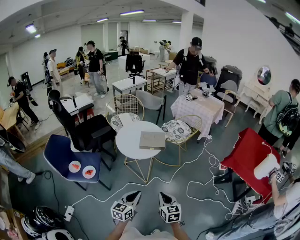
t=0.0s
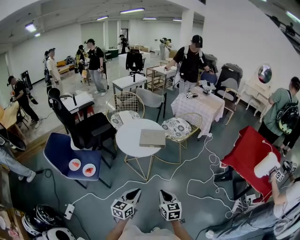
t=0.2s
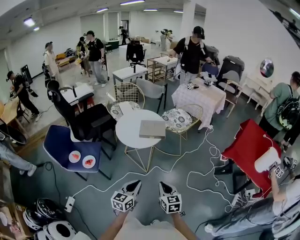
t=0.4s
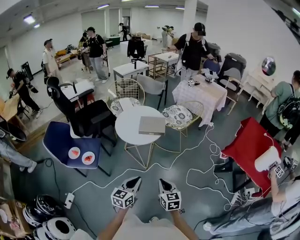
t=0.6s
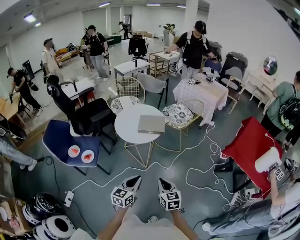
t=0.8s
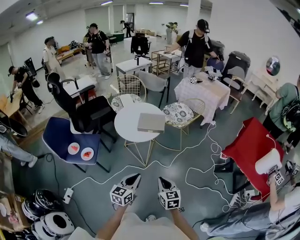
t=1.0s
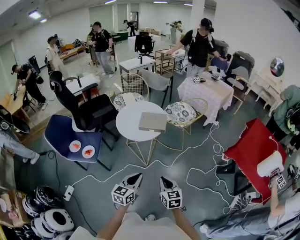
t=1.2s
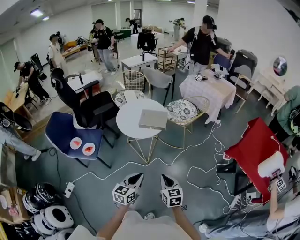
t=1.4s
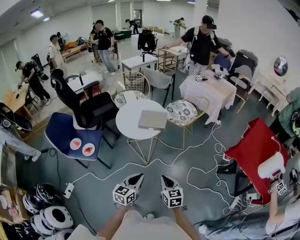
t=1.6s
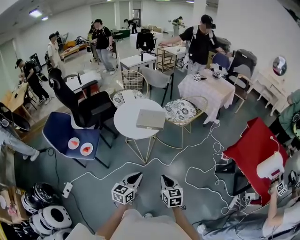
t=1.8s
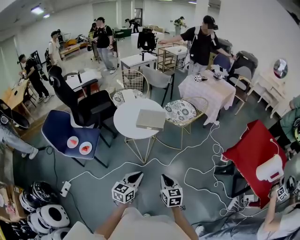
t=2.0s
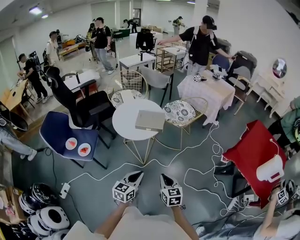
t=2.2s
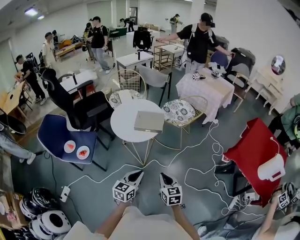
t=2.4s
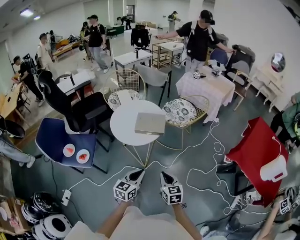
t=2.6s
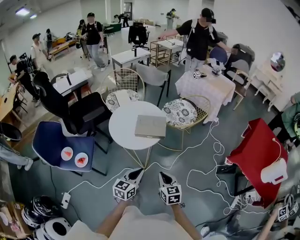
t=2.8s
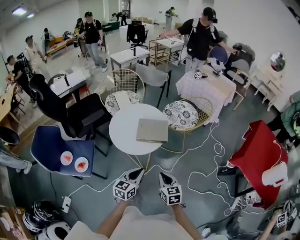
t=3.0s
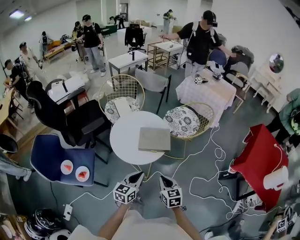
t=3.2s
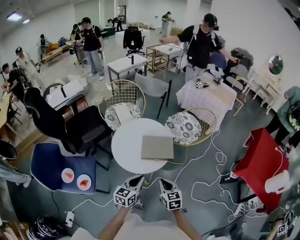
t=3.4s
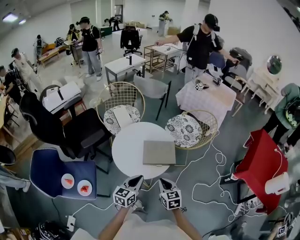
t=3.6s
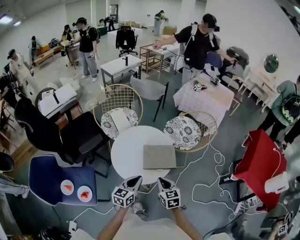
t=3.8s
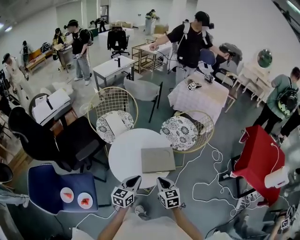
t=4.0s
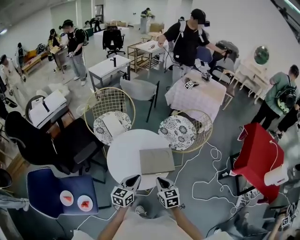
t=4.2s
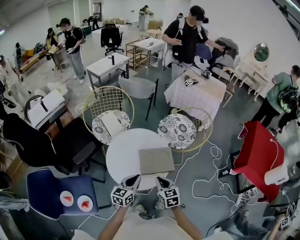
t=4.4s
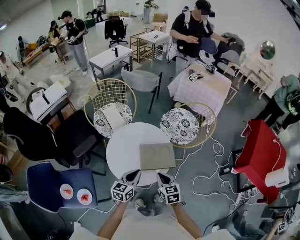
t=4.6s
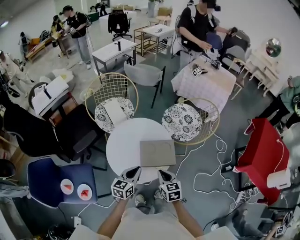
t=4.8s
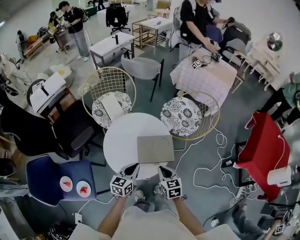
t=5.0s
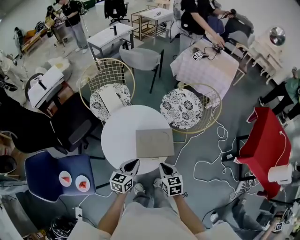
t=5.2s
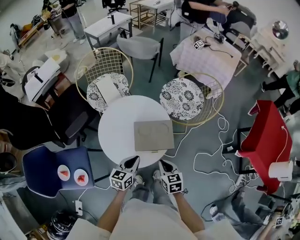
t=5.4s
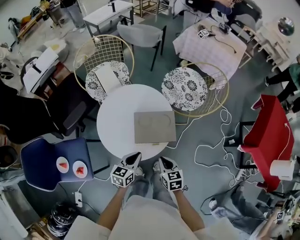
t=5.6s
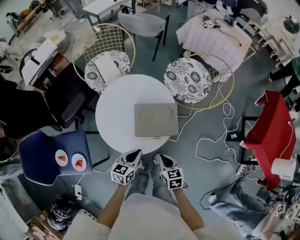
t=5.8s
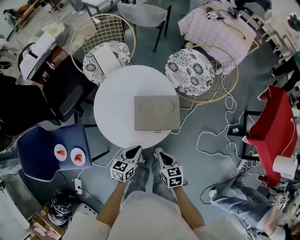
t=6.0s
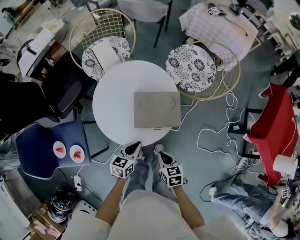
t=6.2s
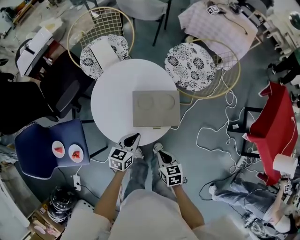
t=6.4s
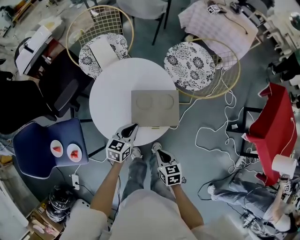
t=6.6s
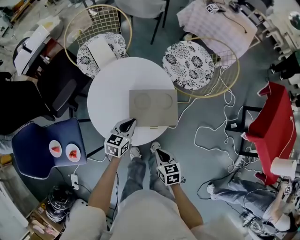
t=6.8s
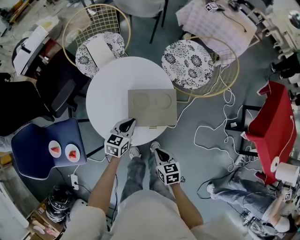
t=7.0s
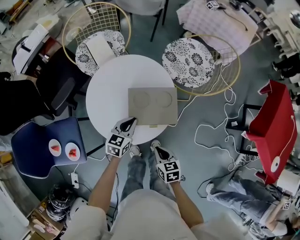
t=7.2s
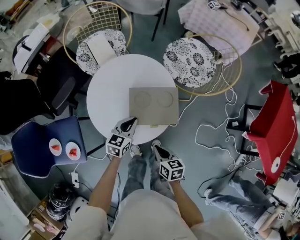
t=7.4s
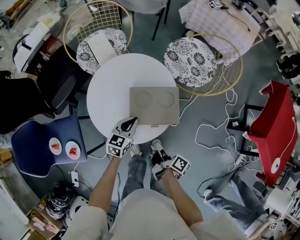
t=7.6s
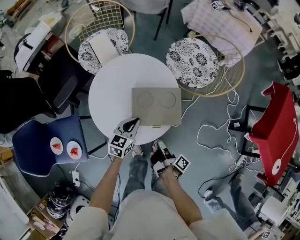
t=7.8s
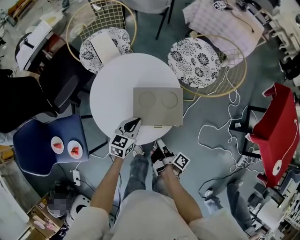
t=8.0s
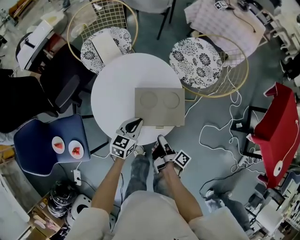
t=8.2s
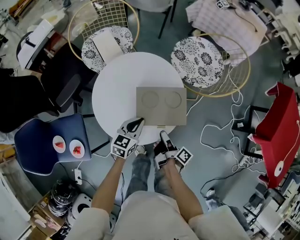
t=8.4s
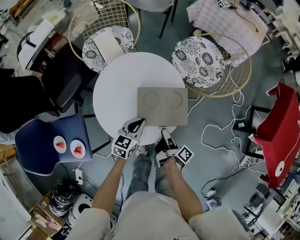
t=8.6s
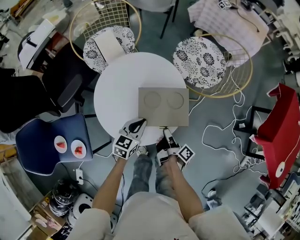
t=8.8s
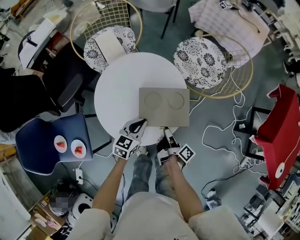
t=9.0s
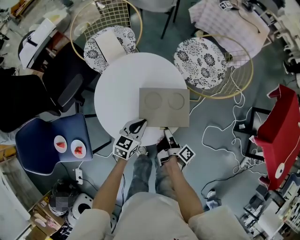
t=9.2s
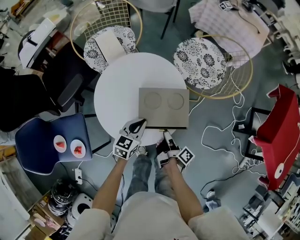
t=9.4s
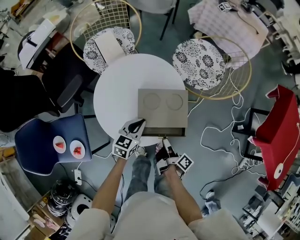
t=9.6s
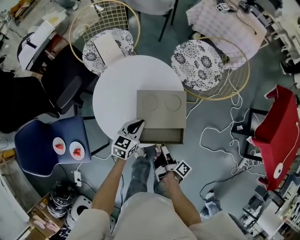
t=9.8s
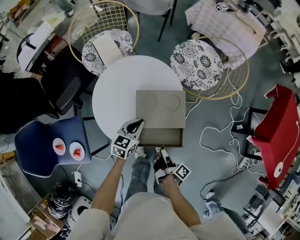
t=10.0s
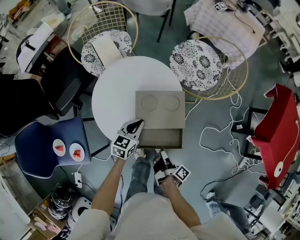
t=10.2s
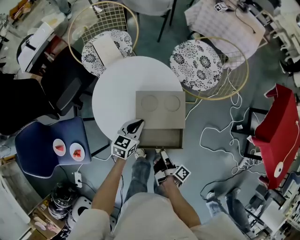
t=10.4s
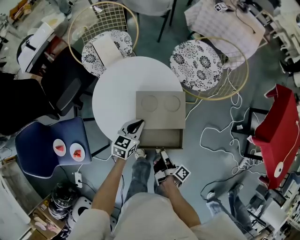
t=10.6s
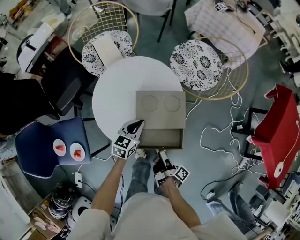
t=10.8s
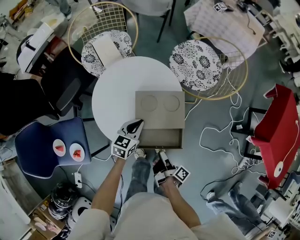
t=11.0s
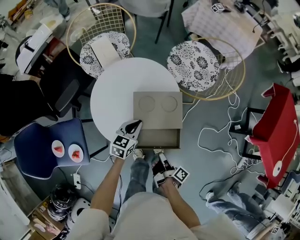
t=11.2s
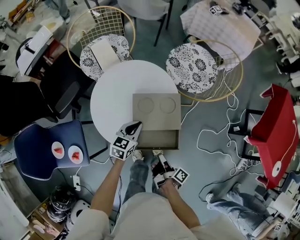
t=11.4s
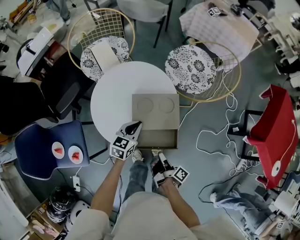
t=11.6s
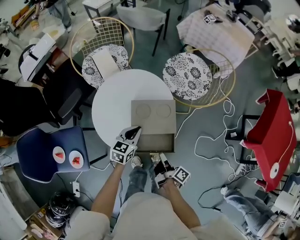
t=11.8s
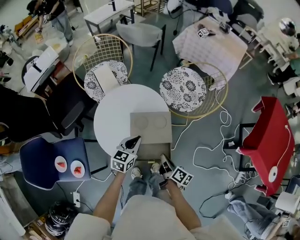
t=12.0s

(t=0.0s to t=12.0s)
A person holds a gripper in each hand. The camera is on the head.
t=0.0s - t=1.6s: Both grippers travel together to the right, some 10 cm.
t=1.6s - t=3.0s: The right gripper is displaced forward and to the left by roughly 20 cm, while the left gripper travels forward by roughly 20 cm.
t=3.0s - t=4.4s: The two grippers go some 25 cm forward and to the left.
t=4.4s - t=6.0s: The left gripper goes some 15 cm downward, while the right gripper goes some 15 cm downward and backward, and turns by some 20 degrees.
t=6.0s - t=7.6s: The left gripper is displaced forward by about 10 cm. Meanwhile the right gripper rolls clockwise, seen from behind, by roughly 70 degrees.
t=7.6s - t=9.0s: The right gripper shifts approximately 5 cm forward.
t=9.0s - t=10.4s: The right gripper heads backward, covering some 10 cm.
t=10.4s - t=12.0s: The right gripper is displaced upward and forward by approximately 10 cm, and swivels about 30 degrees. The left gripper moves upward, about 10 cm.

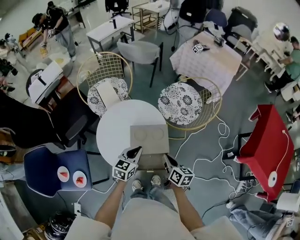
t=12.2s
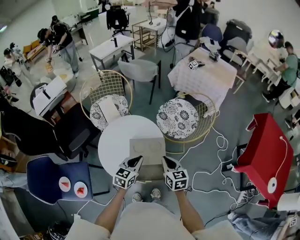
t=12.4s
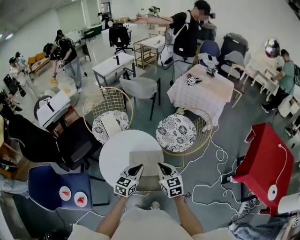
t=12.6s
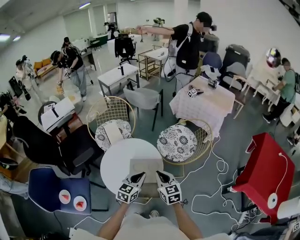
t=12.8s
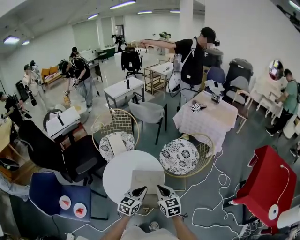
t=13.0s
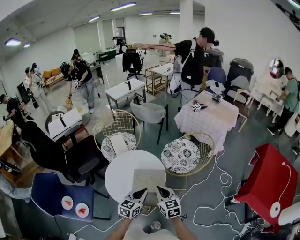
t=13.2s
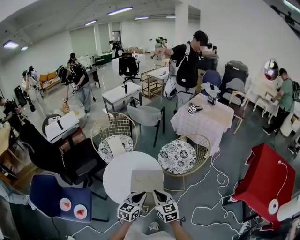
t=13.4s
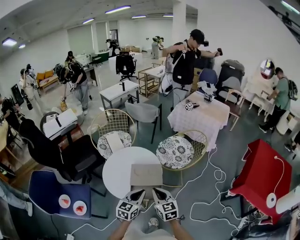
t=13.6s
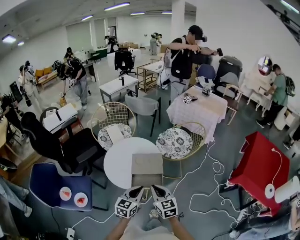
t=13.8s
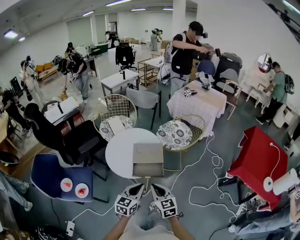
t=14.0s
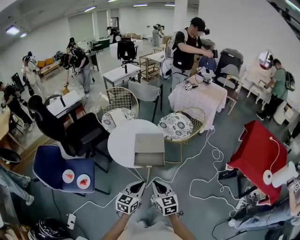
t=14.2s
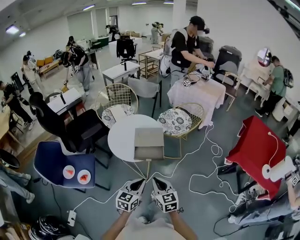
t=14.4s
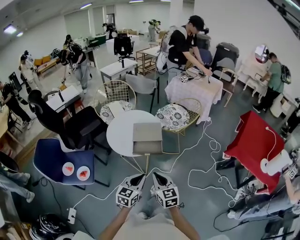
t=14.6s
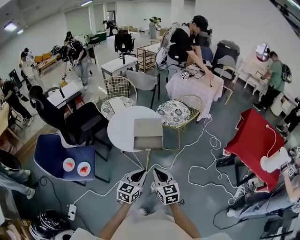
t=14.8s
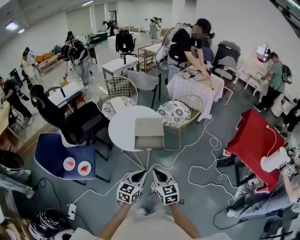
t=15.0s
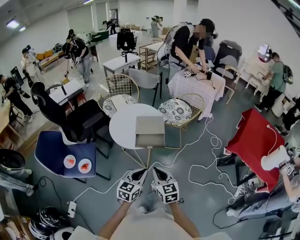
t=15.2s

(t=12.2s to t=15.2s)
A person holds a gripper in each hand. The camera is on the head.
t=12.2s - t=13.8s: Both grippers travel together backward and upward, some 20 cm. The right gripper rolls counterclockwise, seen from behind, by some 40 degrees.
t=13.8s - t=15.2s: The two grippers go some 20 cm backward.

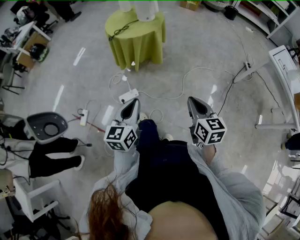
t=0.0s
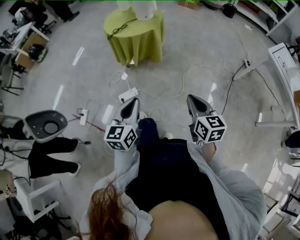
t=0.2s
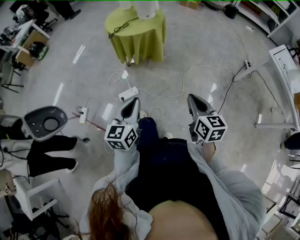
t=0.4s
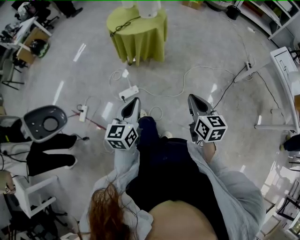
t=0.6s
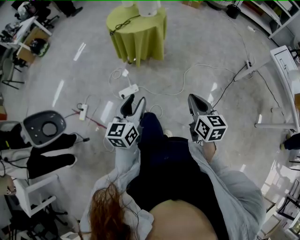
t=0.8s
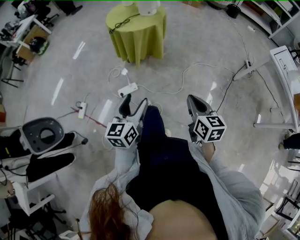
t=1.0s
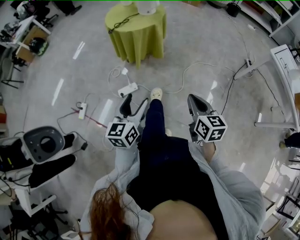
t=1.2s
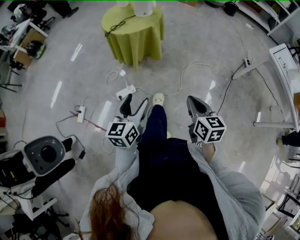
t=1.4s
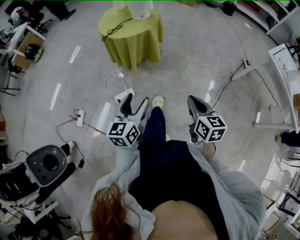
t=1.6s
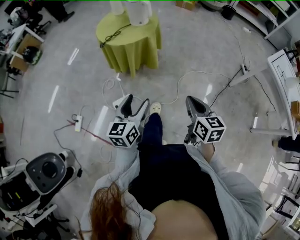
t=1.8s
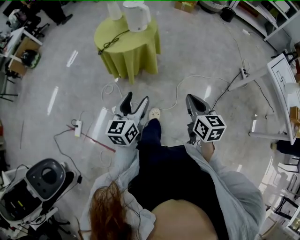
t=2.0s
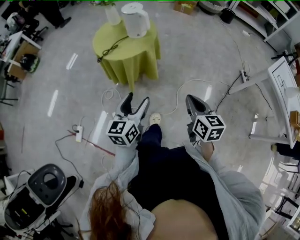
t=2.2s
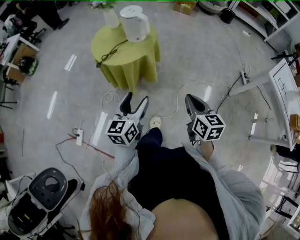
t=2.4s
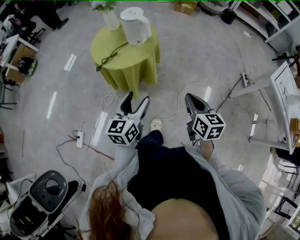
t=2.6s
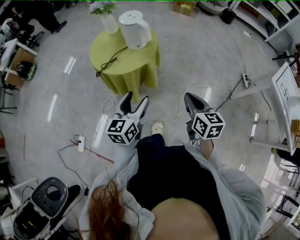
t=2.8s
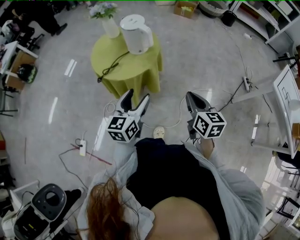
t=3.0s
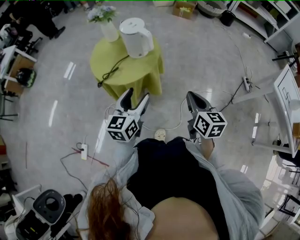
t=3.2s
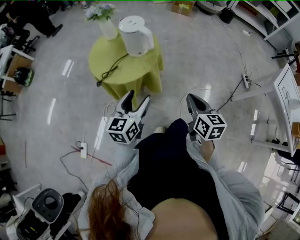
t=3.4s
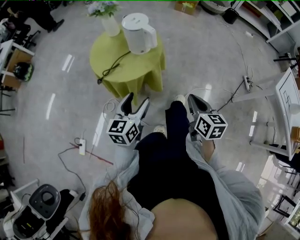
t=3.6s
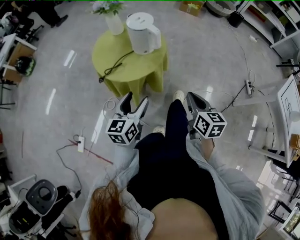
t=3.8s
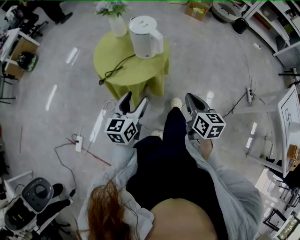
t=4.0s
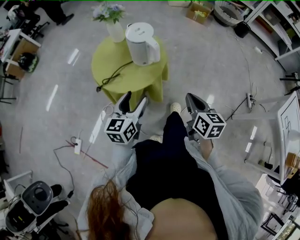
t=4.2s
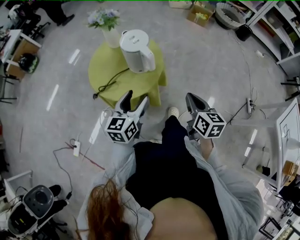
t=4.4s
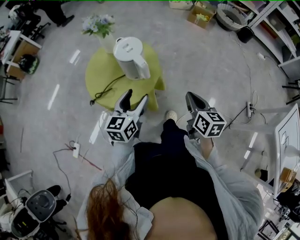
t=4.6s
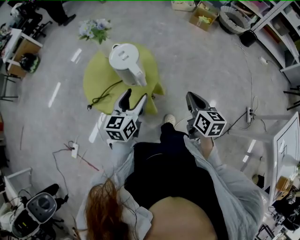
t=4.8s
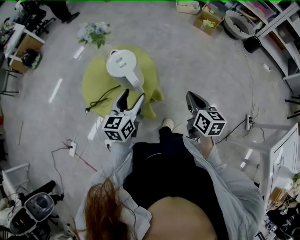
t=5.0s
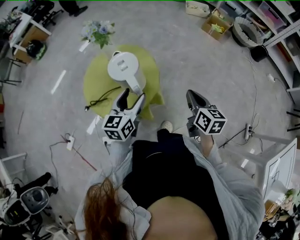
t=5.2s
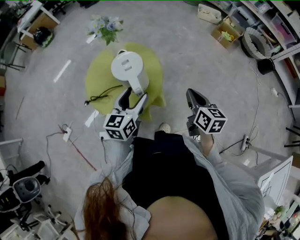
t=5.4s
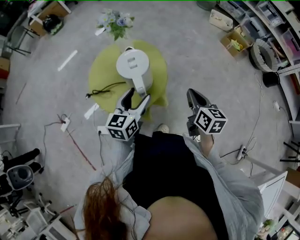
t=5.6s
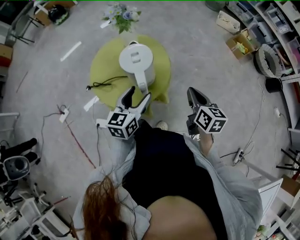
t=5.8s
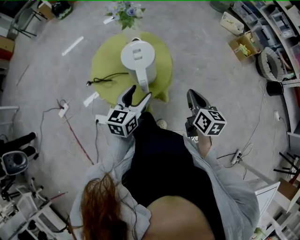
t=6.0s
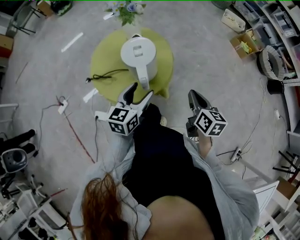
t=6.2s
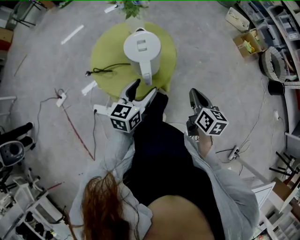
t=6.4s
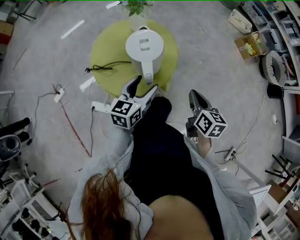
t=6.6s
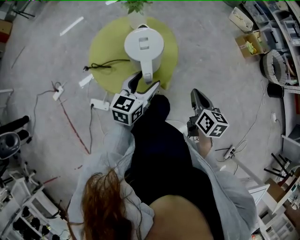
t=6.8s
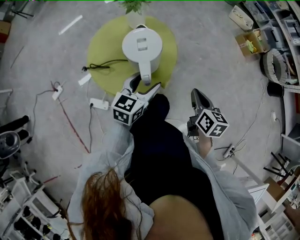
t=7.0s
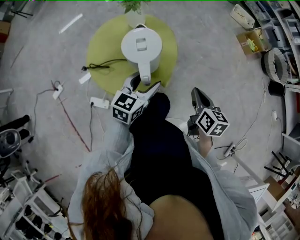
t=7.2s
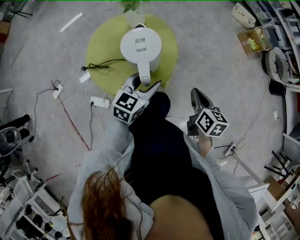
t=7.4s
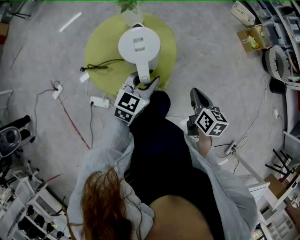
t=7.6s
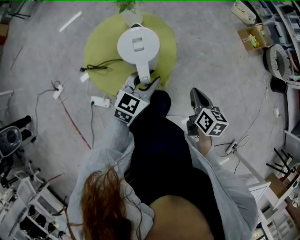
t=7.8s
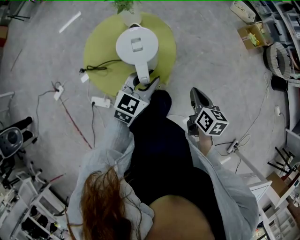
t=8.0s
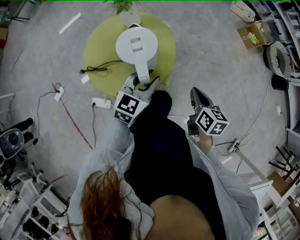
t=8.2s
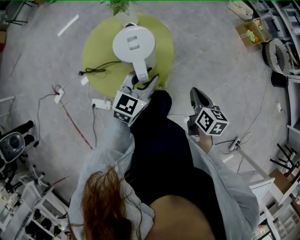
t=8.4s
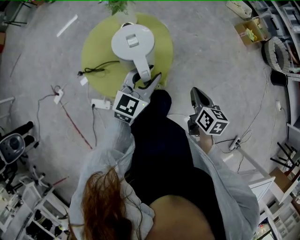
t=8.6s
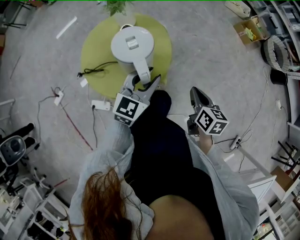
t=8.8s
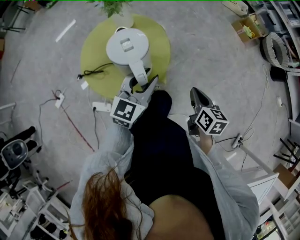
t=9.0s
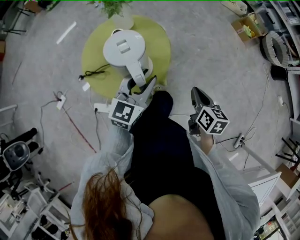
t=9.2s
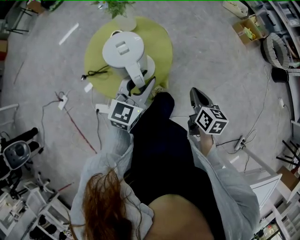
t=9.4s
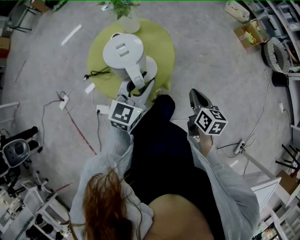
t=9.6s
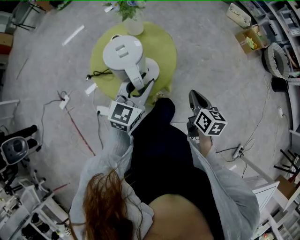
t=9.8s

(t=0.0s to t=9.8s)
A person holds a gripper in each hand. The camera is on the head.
t=0.0s - t=1.4s: The left gripper opens its fingers.
t=1.4s - t=2.8s: Both grippers move forward, approximately 30 cm.
t=2.8s - t=4.2s: Both grippers move forward, approximately 15 cm.
t=4.2s - t=5.6s: The right gripper travels forward by some 25 cm, and rotates about 20 degrees; the left gripper shifts some 20 cm forward and to the right, and swivels about 20 degrees.
t=5.6s - t=7.0s: There are only small adjustments of the grippers.
t=7.0s - t=8.4s: The left gripper closes up.
t=8.4s - t=9.8s: The left gripper ends up approximately 5 cm from where it was.
